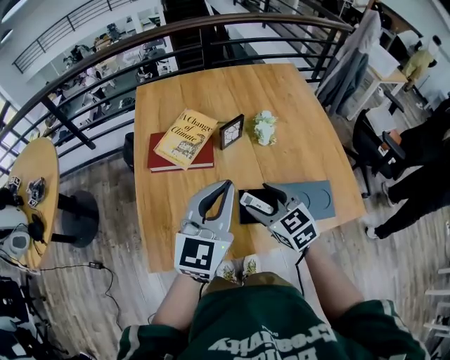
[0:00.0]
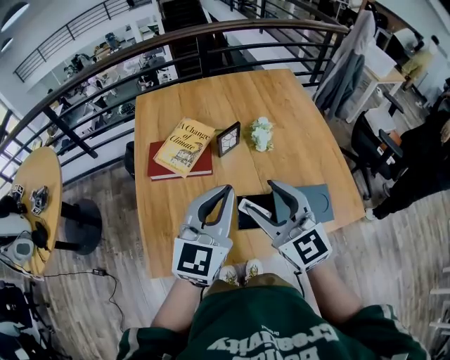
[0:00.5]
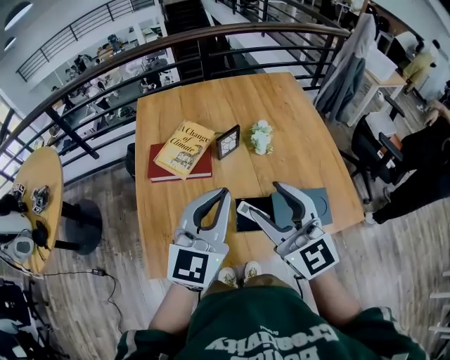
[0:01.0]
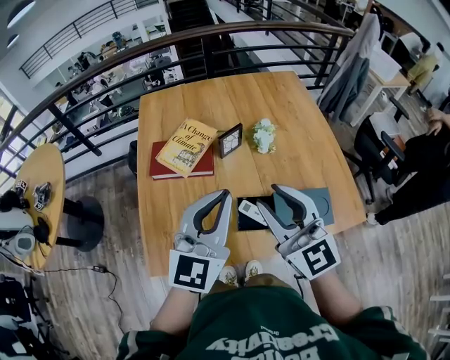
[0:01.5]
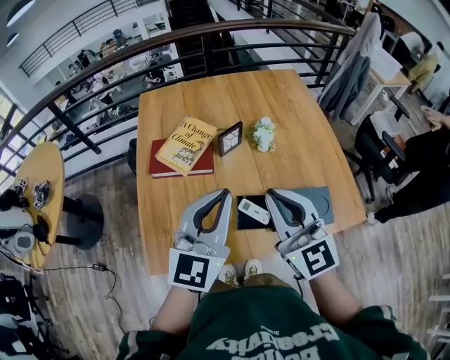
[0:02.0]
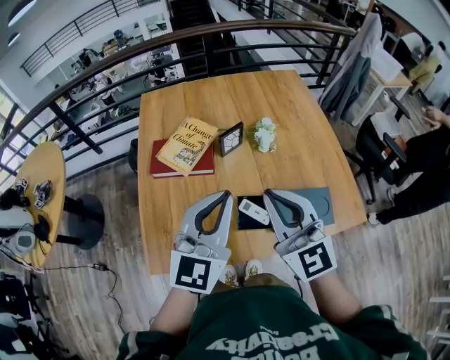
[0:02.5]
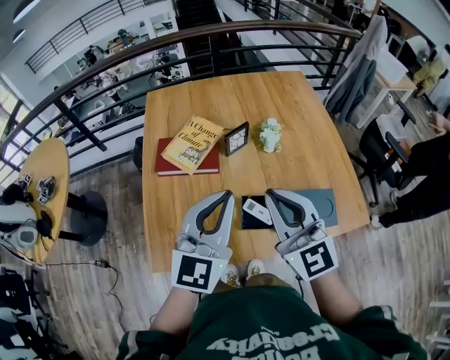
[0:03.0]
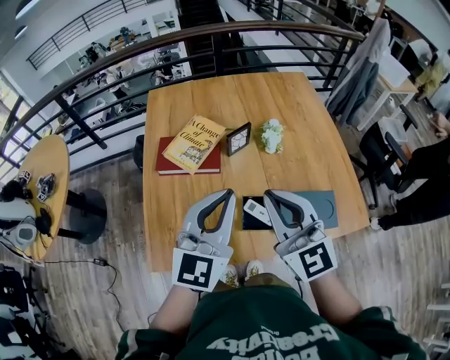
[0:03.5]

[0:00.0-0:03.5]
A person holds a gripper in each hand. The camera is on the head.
0:00.0 to 0:02.0: The right gripper heads upward, covering roughly 15 cm, angles its fingers upward, by roughly 30 degrees, and closes its fingers.
0:02.0 to 0:03.5: There are only small adjustments of the grippers.

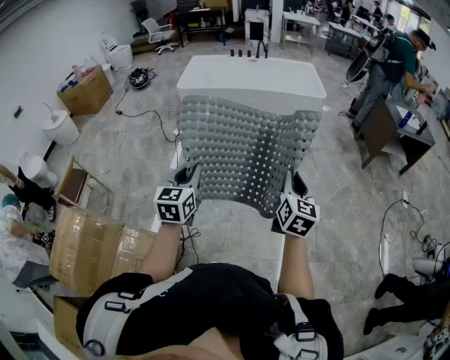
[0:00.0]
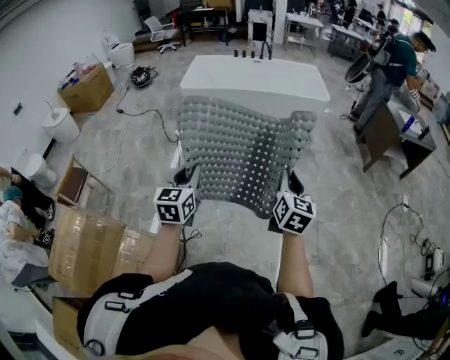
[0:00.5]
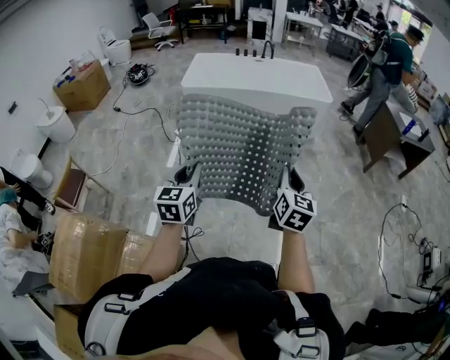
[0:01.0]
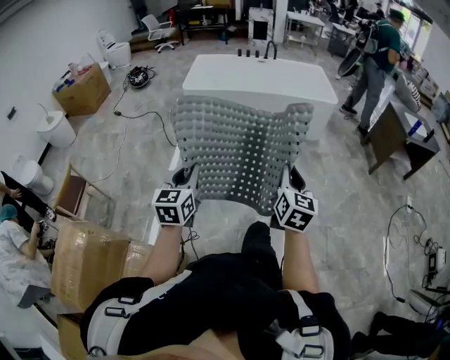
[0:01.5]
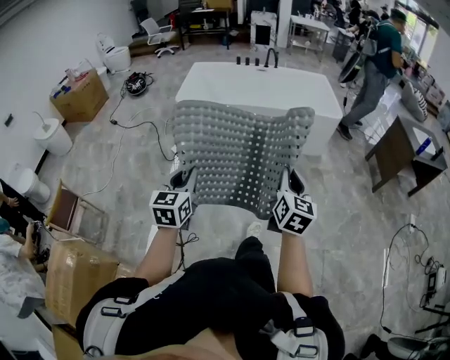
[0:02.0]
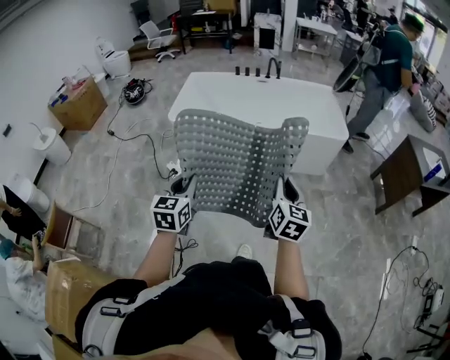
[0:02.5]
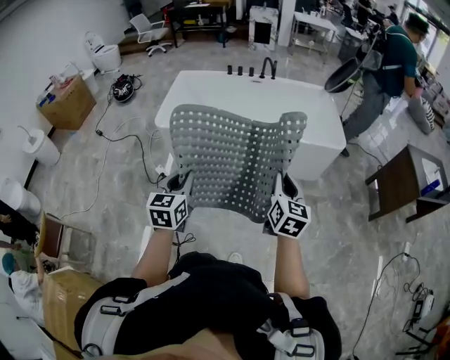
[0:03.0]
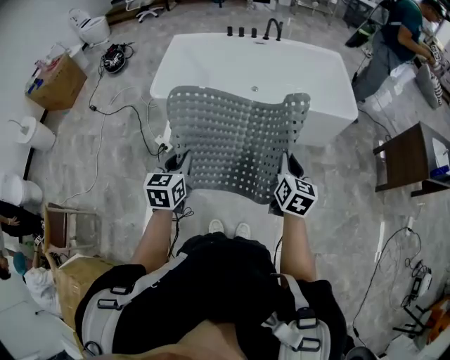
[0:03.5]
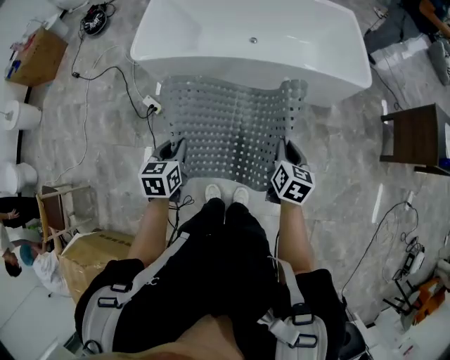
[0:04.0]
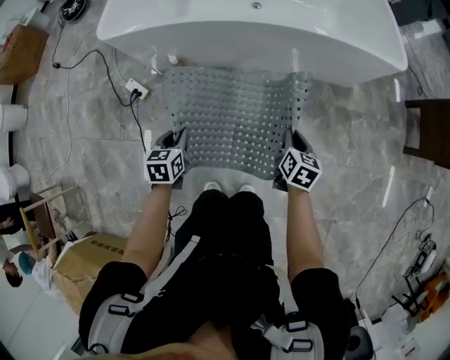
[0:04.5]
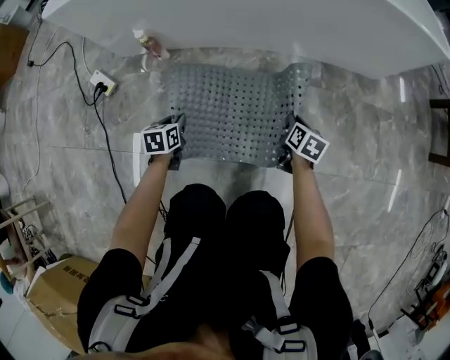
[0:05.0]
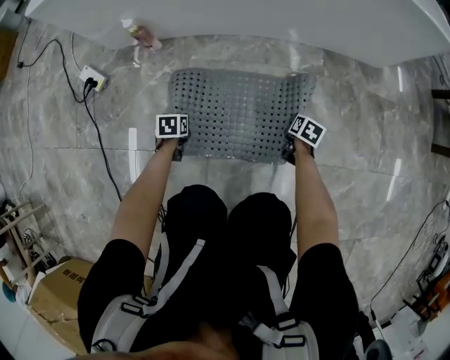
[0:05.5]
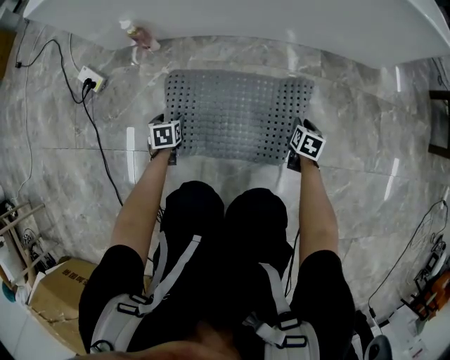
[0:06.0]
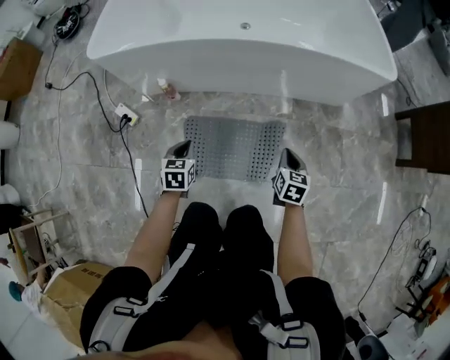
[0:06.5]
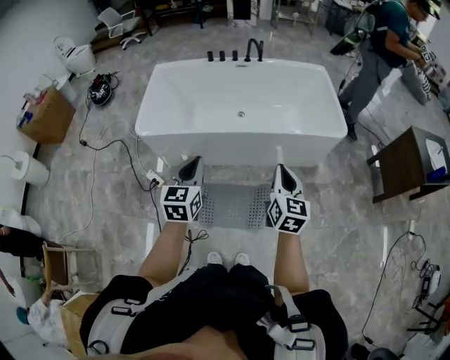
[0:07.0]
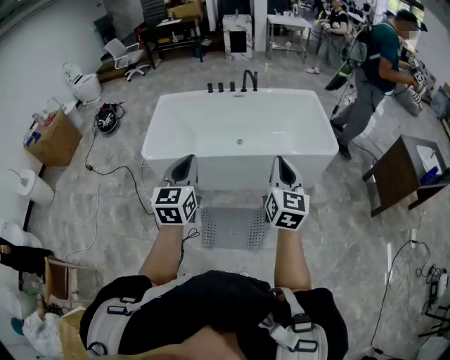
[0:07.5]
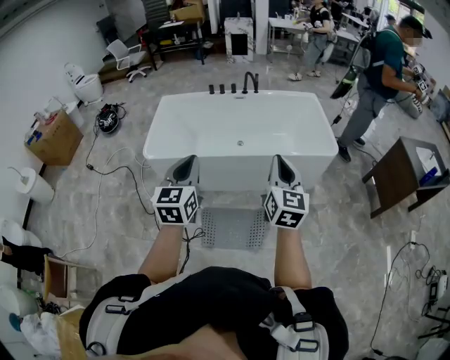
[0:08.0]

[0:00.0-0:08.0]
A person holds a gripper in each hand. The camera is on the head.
0:00.0 to 0:02.0: Both grippers move forward and to the left, approximately 25 cm.
0:02.0 to 0:04.0: The two grippers travel together, forward, approximately 40 cm. The grippers both shift downward by roughly 15 cm. The right gripper rotates roughly 30 degrees. Meanwhile the left gripper swivels some 30 degrees.
0:04.0 to 0:06.0: Both grippers travel together downward, roughly 80 cm. The left gripper rotates roughly 30 degrees, and opens its fingers, while the right gripper turns by some 20 degrees.
0:06.0 to 0:08.0: The two grippers go roughly 1 m upward. The left gripper points its fingers about 60 degrees further upward, and closes, while the right gripper tilts its fingers approximately 60 degrees upward, and closes.

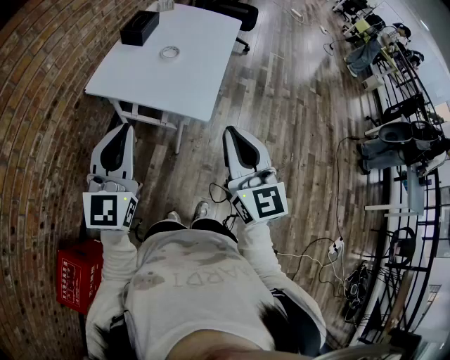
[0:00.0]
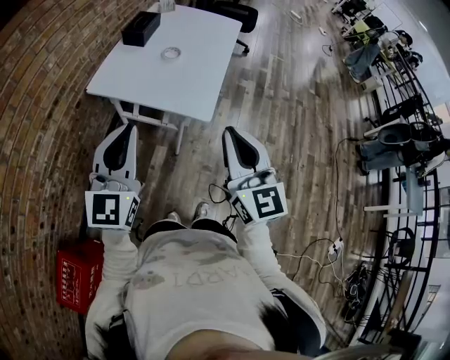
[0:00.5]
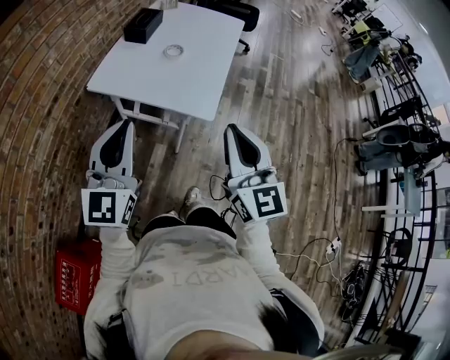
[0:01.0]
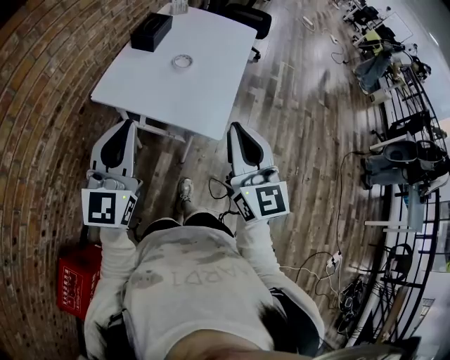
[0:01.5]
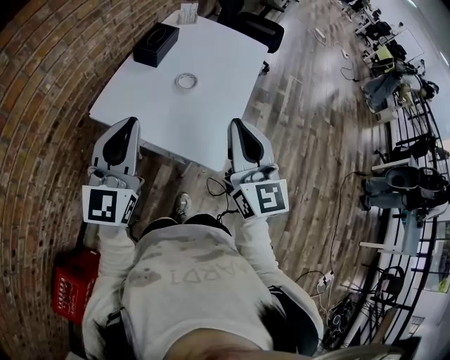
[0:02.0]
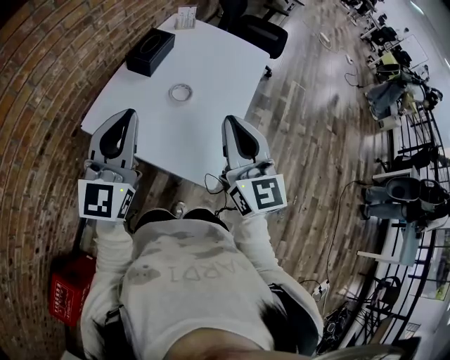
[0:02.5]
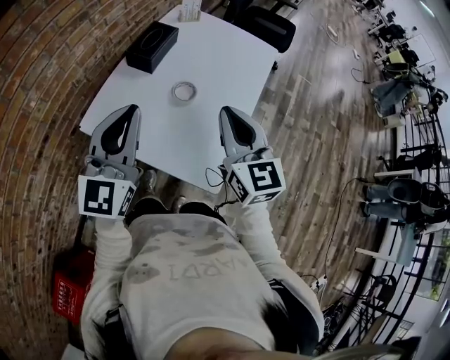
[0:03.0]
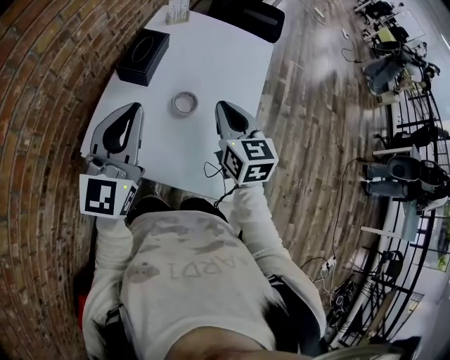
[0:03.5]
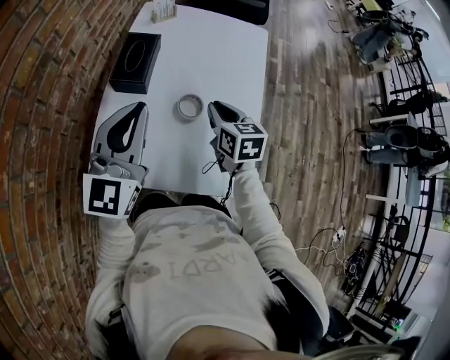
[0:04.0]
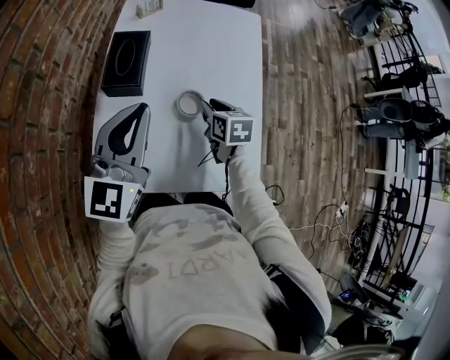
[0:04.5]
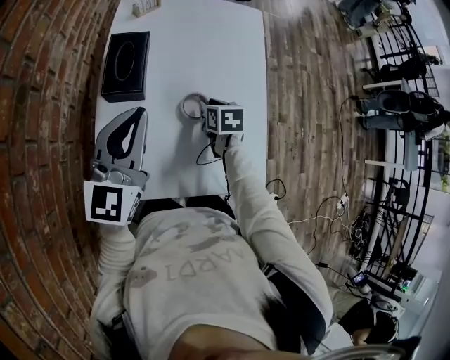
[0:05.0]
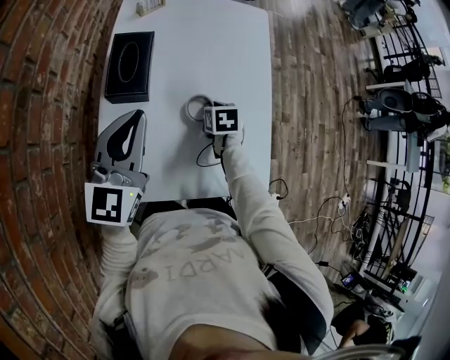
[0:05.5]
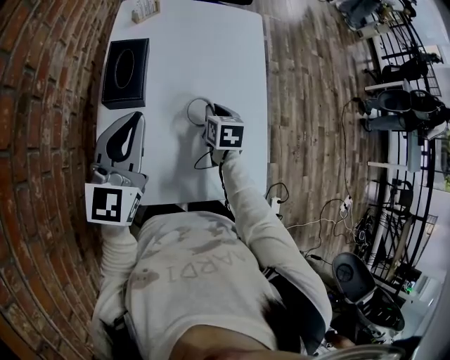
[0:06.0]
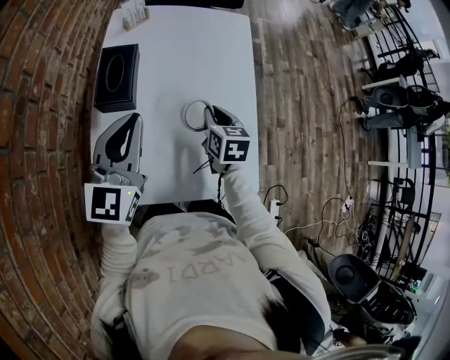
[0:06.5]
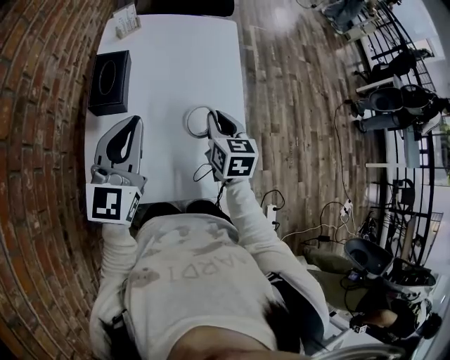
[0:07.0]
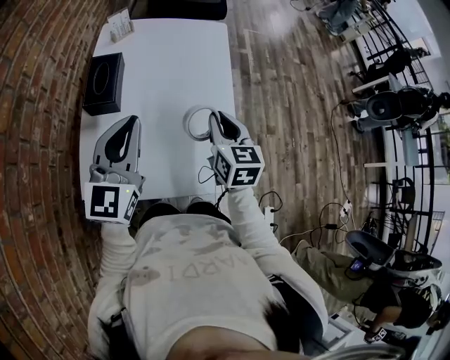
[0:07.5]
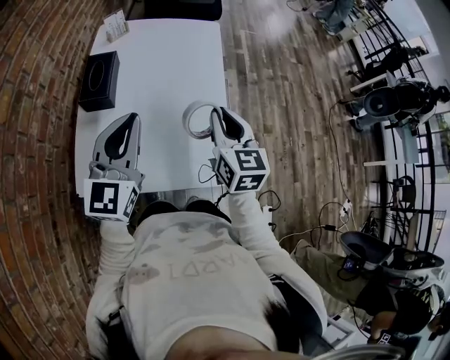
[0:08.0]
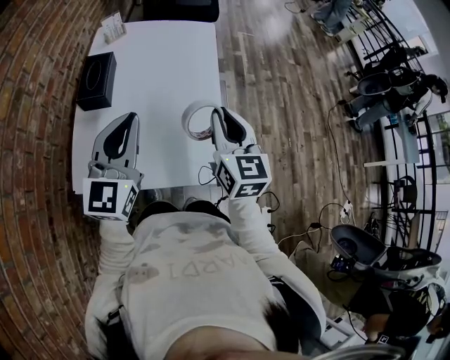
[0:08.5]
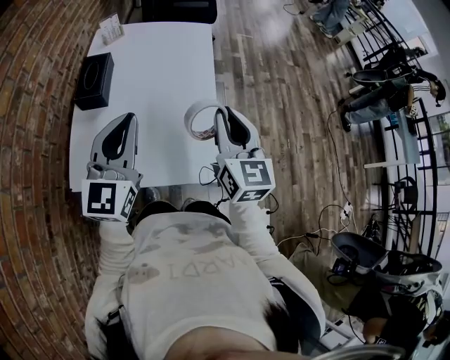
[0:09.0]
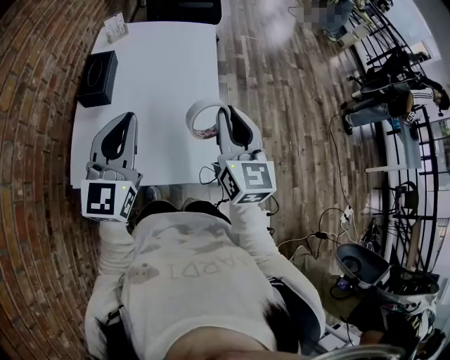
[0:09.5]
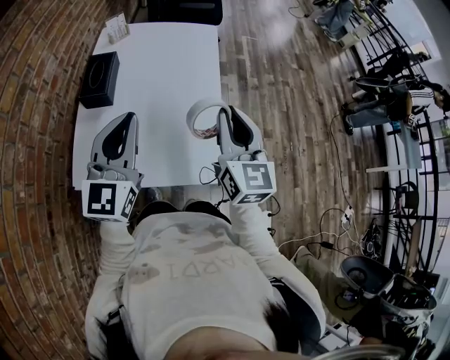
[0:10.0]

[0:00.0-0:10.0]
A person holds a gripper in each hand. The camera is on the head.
0:00.0 to 0:02.0: Both grippers travel together forward, about 25 cm.
0:02.0 to 0:04.0: The left gripper shifts roughly 30 cm forward; the right gripper shifts approximately 40 cm forward and downward, and tips its fingers downward by roughly 40 degrees.
0:04.0 to 0:06.0: The left gripper travels forward and downward by approximately 10 cm; the right gripper shifts some 10 cm downward, and swivels approximately 20 degrees.
0:06.0 to 0:08.0: The right gripper is displaced upward, to the right and backward by approximately 30 cm, and tips its fingers upward by about 30 degrees, while the left gripper is displaced to the right and backward by some 15 cm.
0:08.0 to 0:10.0: The right gripper heads upward, covering some 5 cm.

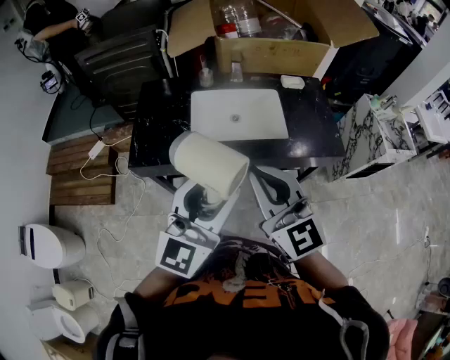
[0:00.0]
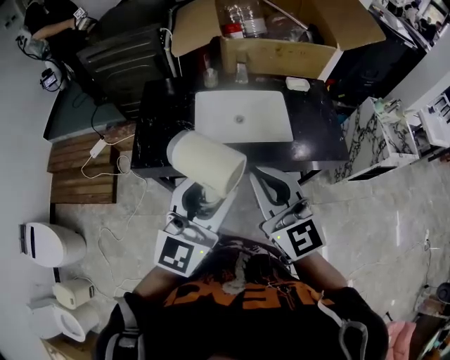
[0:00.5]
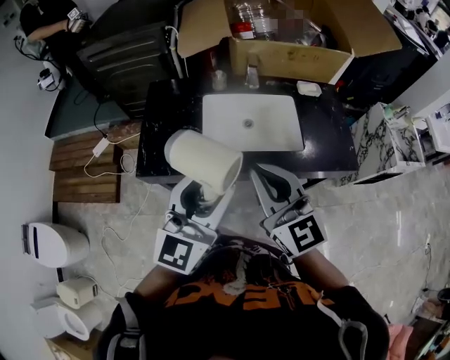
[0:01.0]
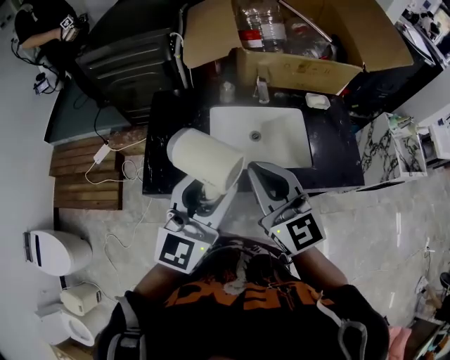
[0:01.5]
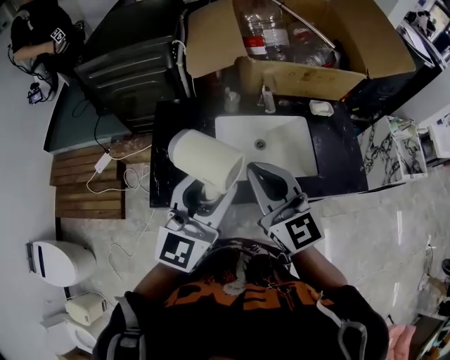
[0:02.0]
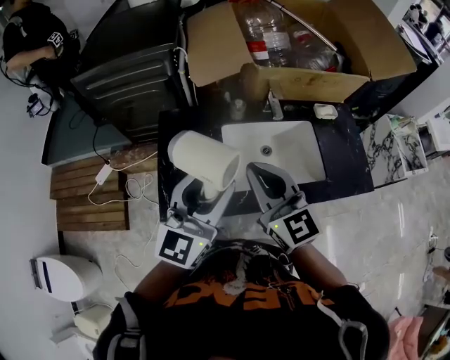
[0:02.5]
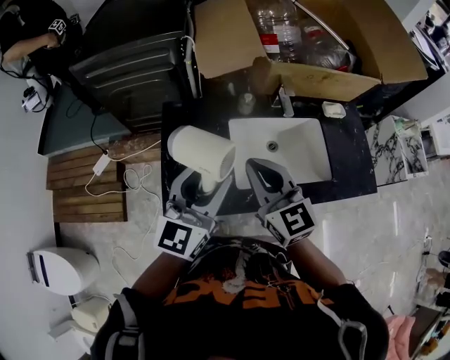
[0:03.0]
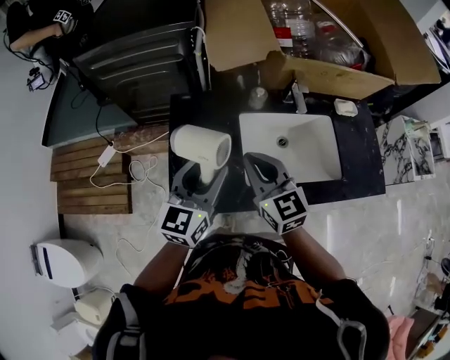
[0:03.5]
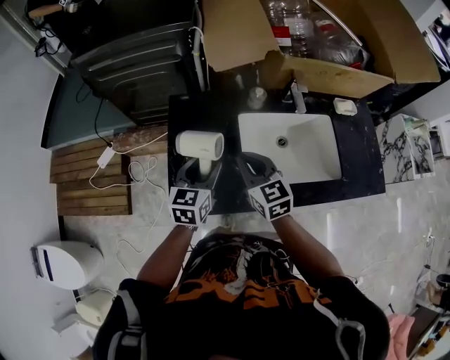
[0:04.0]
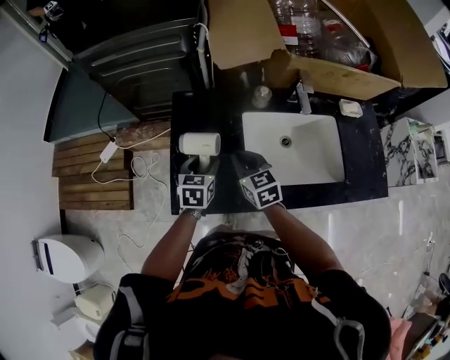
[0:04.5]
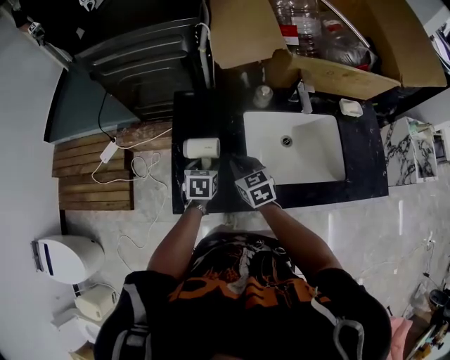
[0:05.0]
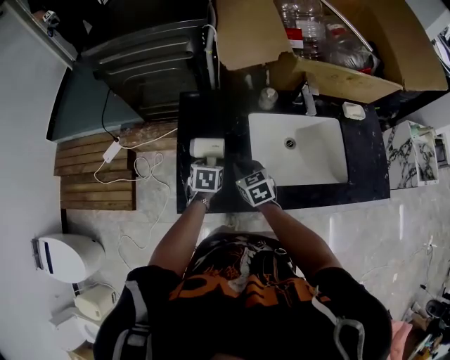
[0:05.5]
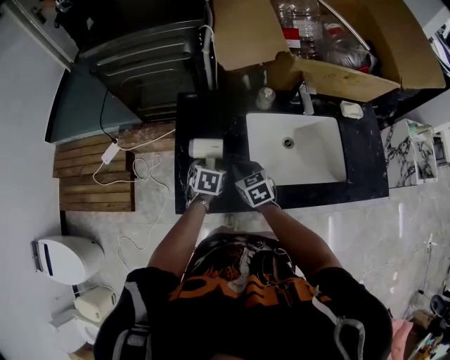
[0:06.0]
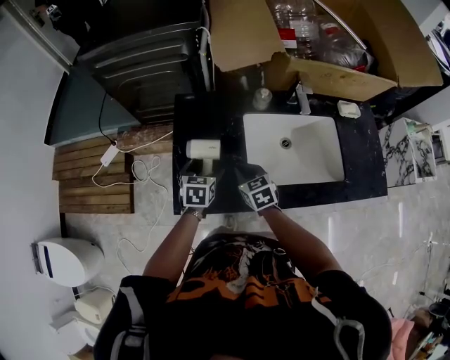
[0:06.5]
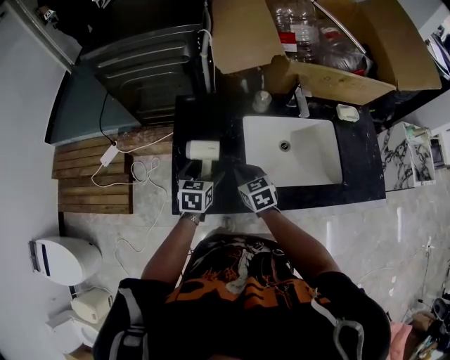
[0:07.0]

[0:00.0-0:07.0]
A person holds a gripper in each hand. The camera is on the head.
0:00.0 to 0:02.0: The two grippers go some 25 cm forward and to the left.
0:02.0 to 0:03.5: The left gripper moves downward, to the left and forward, about 20 cm. Meanwhile the right gripper goes some 20 cm downward, forward and to the left.
0:03.5 to 0:05.0: Both grippers move downward, roughly 20 cm. The left gripper tilts its fingers about 40 degrees downward; the right gripper changes its angle by some 20 degrees.
0:05.0 to 0:07.0: The left gripper opens.
